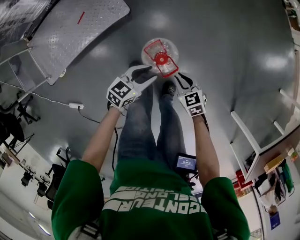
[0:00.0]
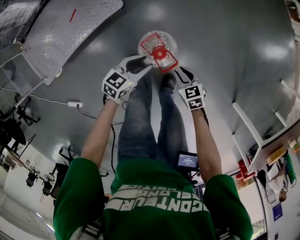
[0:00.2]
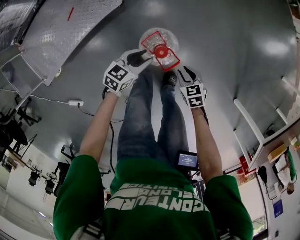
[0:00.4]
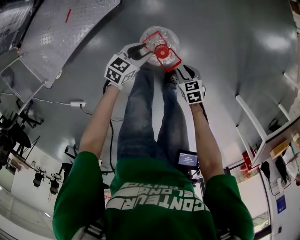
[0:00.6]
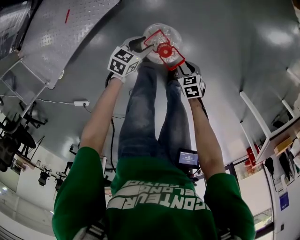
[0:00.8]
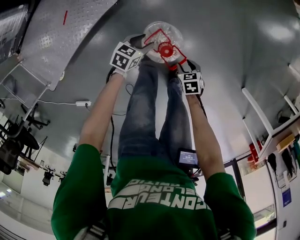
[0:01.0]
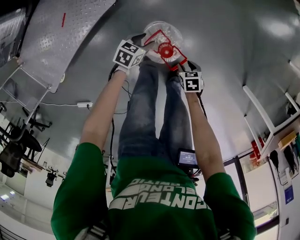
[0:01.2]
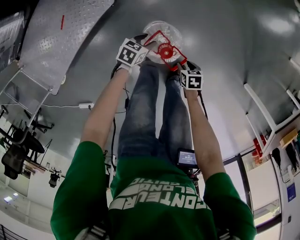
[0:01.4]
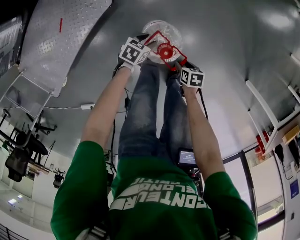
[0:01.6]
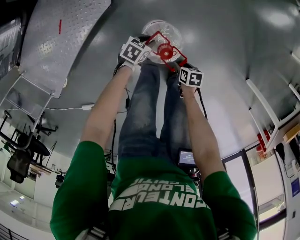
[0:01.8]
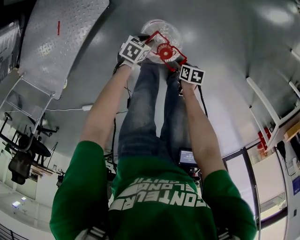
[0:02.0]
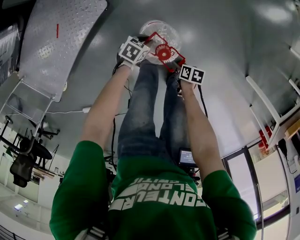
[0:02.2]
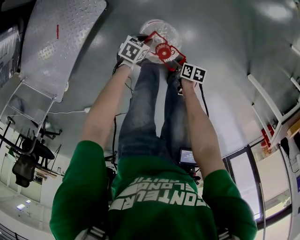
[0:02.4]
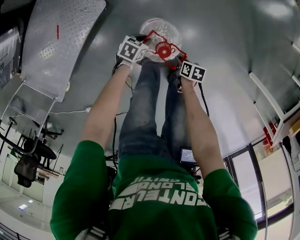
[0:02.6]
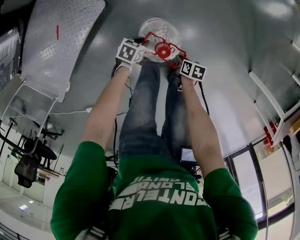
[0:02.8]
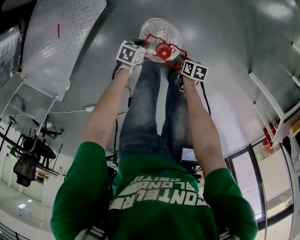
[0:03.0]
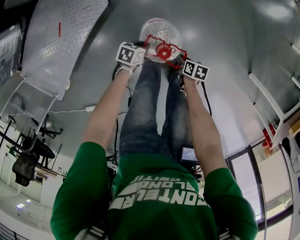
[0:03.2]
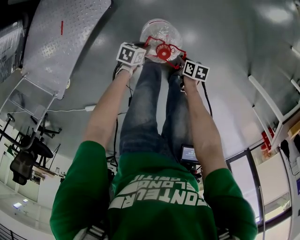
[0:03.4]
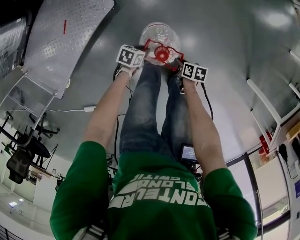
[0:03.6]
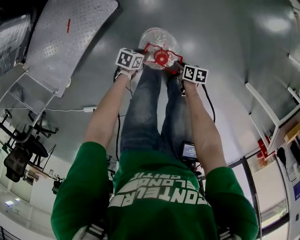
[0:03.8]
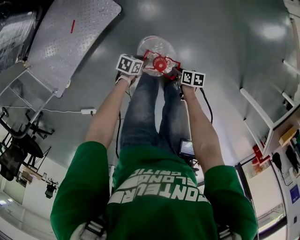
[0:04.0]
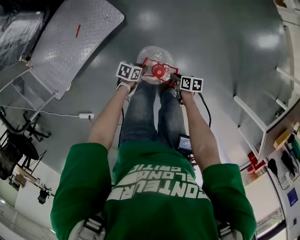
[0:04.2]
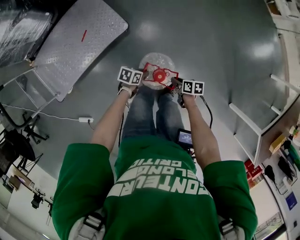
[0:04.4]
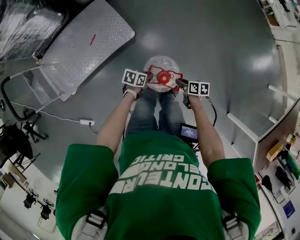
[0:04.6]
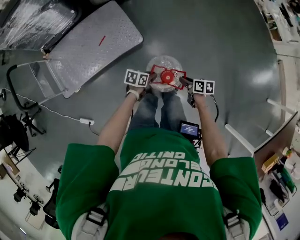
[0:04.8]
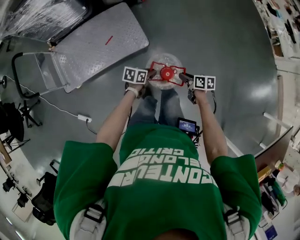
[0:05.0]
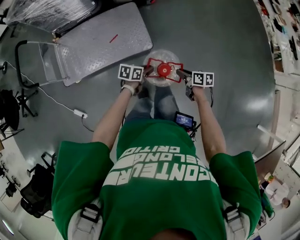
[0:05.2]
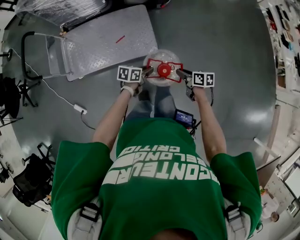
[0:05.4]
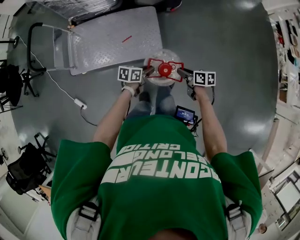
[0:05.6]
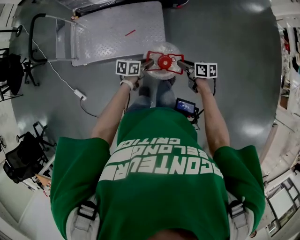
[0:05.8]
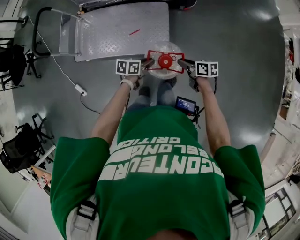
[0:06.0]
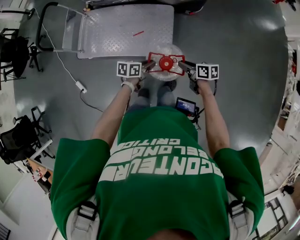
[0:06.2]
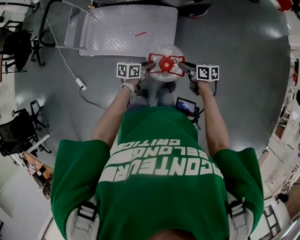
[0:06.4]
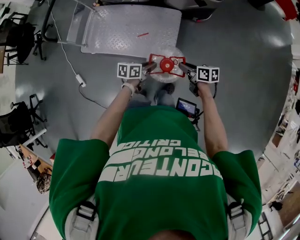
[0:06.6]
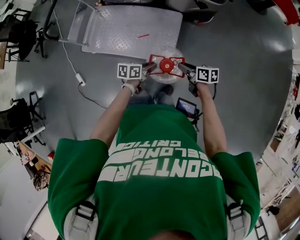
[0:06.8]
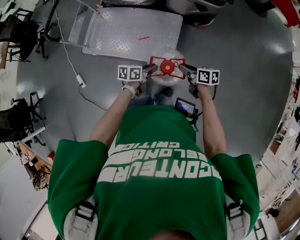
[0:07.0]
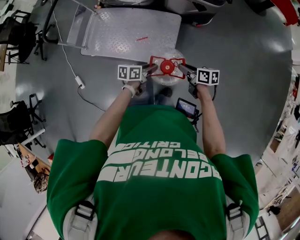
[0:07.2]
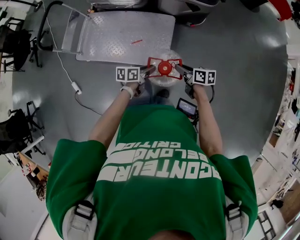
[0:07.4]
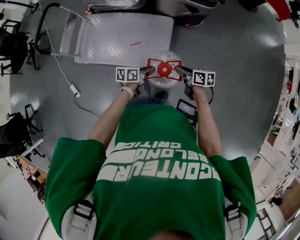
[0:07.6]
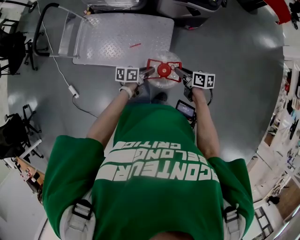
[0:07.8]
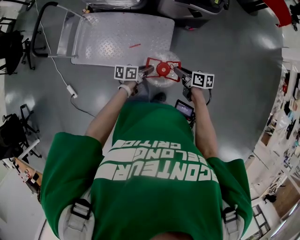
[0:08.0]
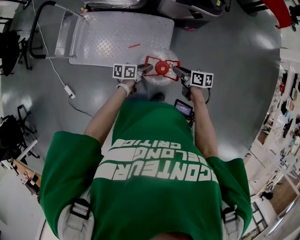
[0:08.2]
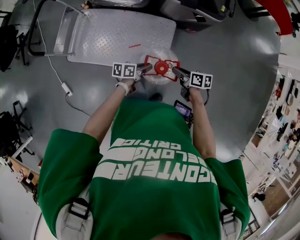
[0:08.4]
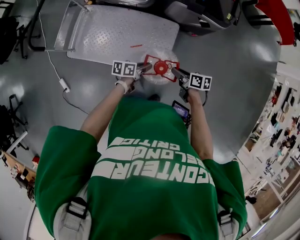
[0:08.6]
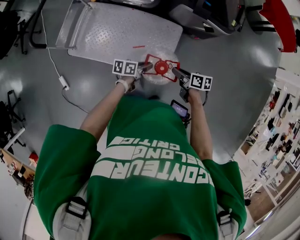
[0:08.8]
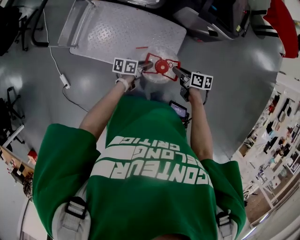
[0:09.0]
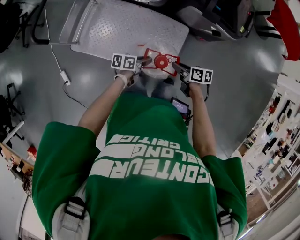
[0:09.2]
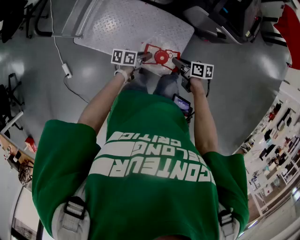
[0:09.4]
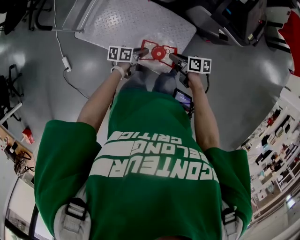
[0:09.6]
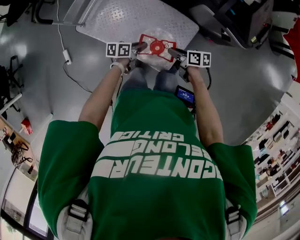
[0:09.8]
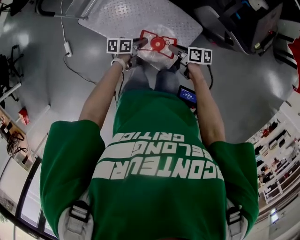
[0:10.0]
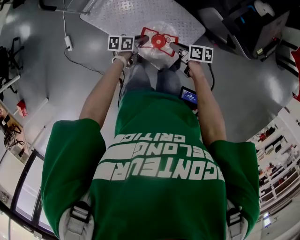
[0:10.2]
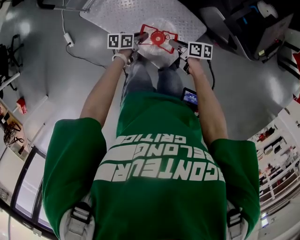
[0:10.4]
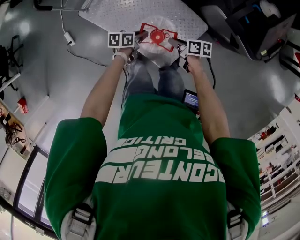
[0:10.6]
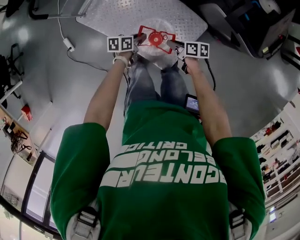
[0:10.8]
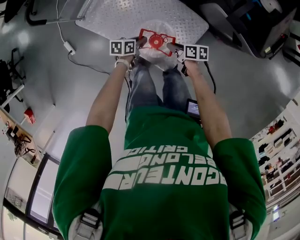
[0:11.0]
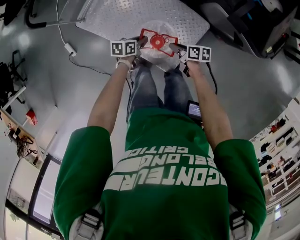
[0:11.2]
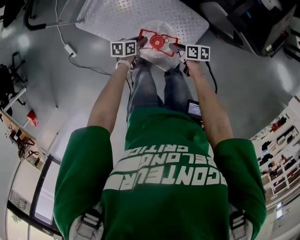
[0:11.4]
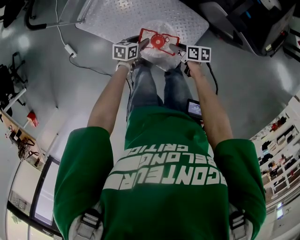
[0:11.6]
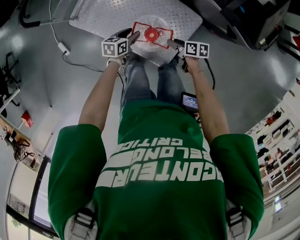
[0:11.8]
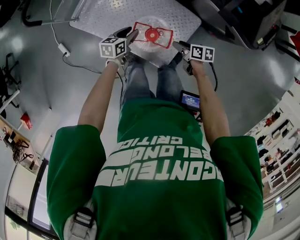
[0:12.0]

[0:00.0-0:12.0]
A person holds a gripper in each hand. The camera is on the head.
0:00.0 to 0:01.6: The two grippers go approximately 20 cm downward. The left gripper changes its angle by some 30 degrees; the right gripper twists about 50 degrees clockwise, seen from behind, and opens up.
0:01.6 to 0:03.0: The right gripper closes its fingers; the left gripper closes up.
0:03.0 to 0:04.4: Both grippers travel together upward, about 15 cm. The right gripper swivels roughly 20 degrees.
0:04.4 to 0:06.0: The left gripper ends up approximately 30 cm from where it was, and changes its angle by roughly 50 degrees; the right gripper ends up some 40 cm from where it was, and changes its angle by roughly 50 degrees.
0:06.0 to 0:07.6: The two grippers go about 10 cm forward.
0:07.6 to 0:09.0: The grippers both shift forward and to the left by roughly 20 cm.
0:09.0 to 0:10.4: The right gripper ends up roughly 15 cm from where it was, and swivels about 20 degrees. Meanwhile the left gripper moves approximately 10 cm, and turns by approximately 30 degrees.
0:10.4 to 0:12.0: The left gripper moves about 5 cm, changes its angle by some 20 degrees, and opens its fingers. The right gripper moves roughly 5 cm, and opens.

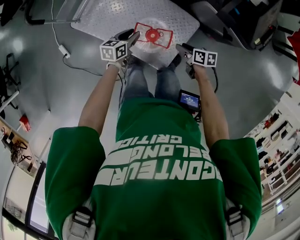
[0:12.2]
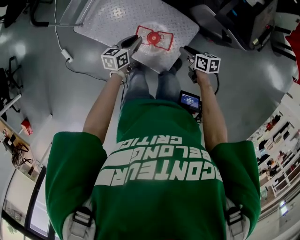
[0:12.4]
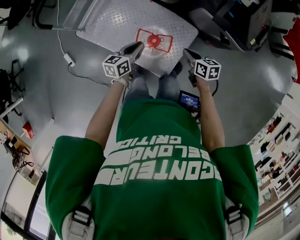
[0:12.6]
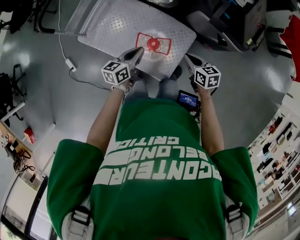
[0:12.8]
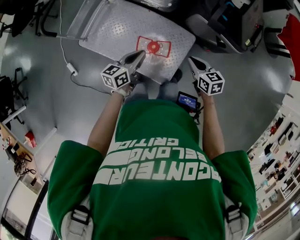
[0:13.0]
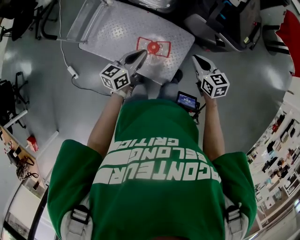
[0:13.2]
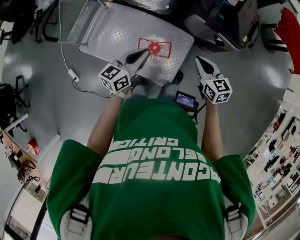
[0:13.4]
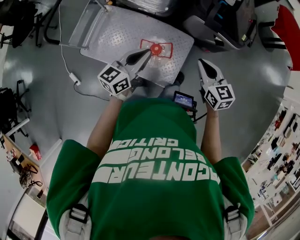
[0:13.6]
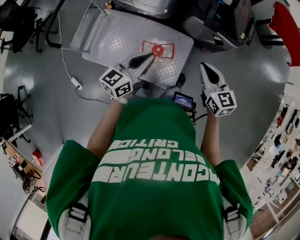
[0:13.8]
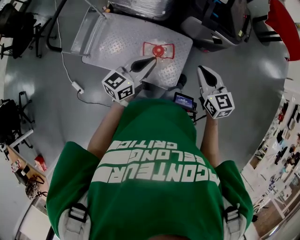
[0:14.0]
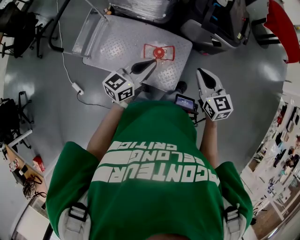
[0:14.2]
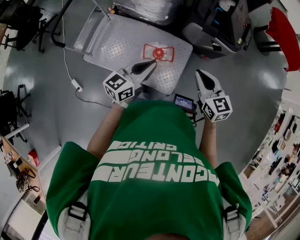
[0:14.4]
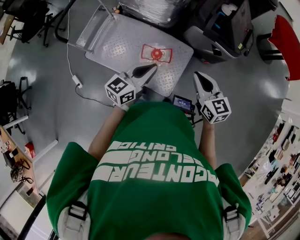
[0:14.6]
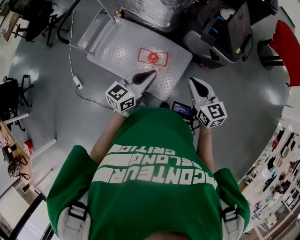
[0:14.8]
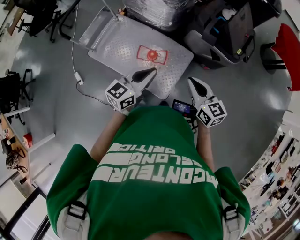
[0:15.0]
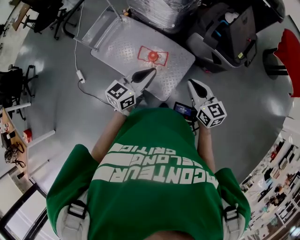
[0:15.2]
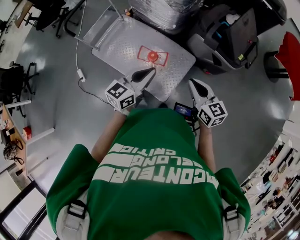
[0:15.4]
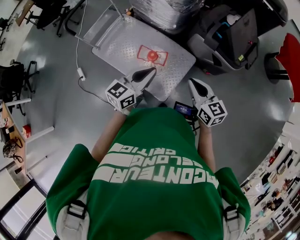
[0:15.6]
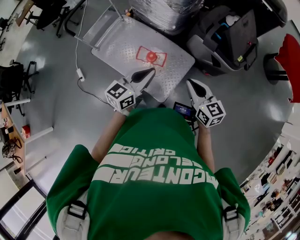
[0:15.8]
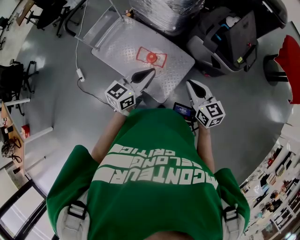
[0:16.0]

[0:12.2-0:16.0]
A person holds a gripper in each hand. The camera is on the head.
0:12.2 to 0:13.4: The grippers both shift upward by about 25 cm. The left gripper swivels some 30 degrees, and closes up. The right gripper turns by about 40 degrees, and closes.
0:13.4 to 0:14.8: The right gripper travels backward and upward by some 15 cm. The left gripper moves backward, to the right and upward, some 15 cm.
0:14.8 to 0:16.0: The grippers move only a little.

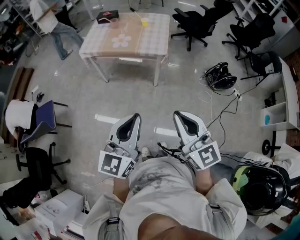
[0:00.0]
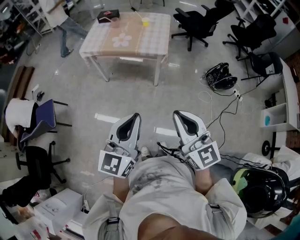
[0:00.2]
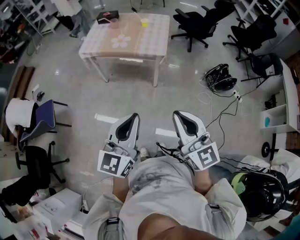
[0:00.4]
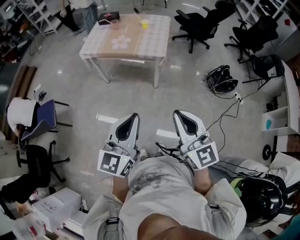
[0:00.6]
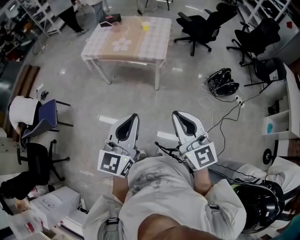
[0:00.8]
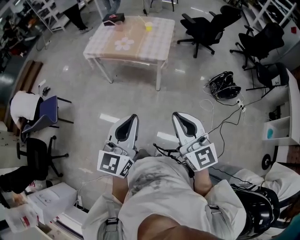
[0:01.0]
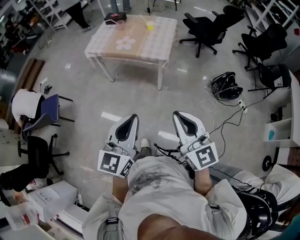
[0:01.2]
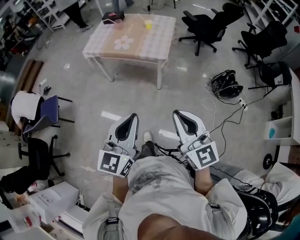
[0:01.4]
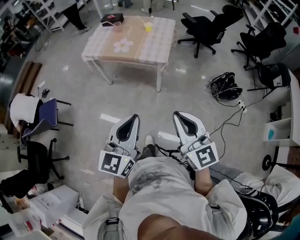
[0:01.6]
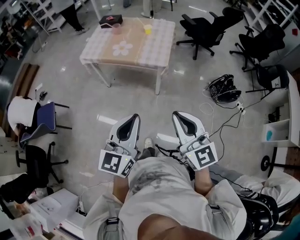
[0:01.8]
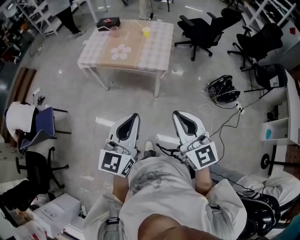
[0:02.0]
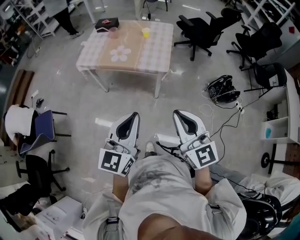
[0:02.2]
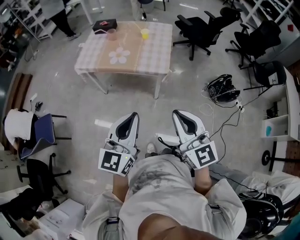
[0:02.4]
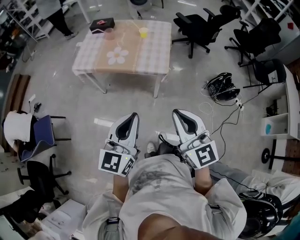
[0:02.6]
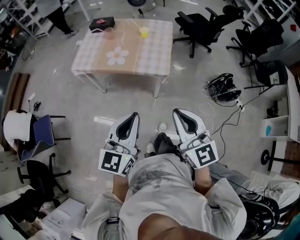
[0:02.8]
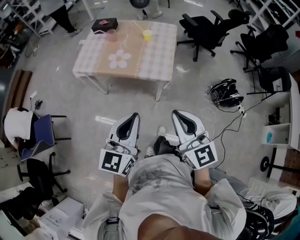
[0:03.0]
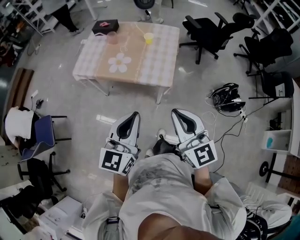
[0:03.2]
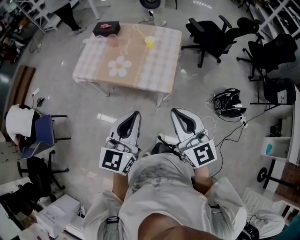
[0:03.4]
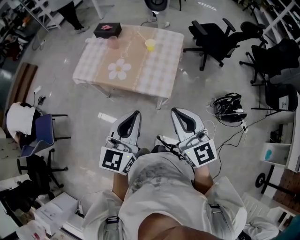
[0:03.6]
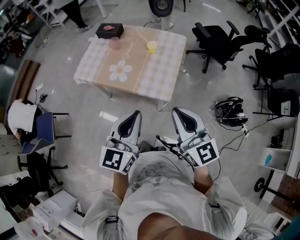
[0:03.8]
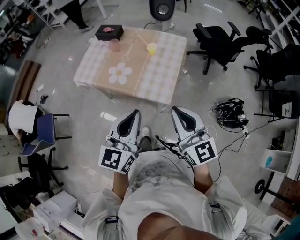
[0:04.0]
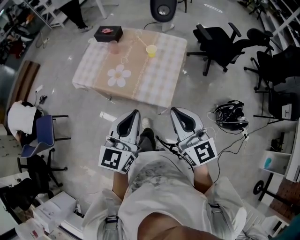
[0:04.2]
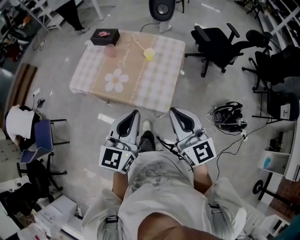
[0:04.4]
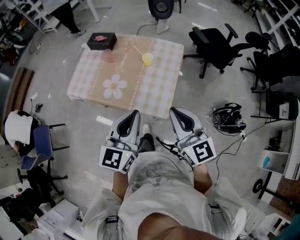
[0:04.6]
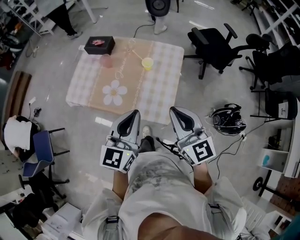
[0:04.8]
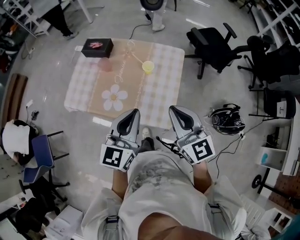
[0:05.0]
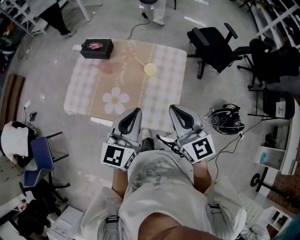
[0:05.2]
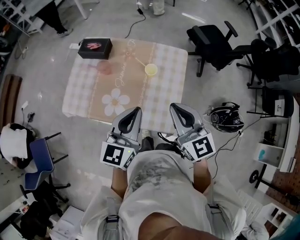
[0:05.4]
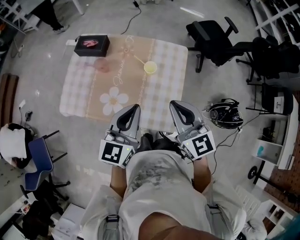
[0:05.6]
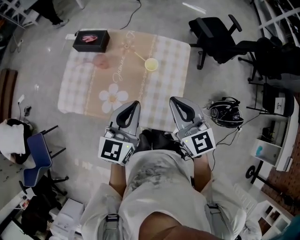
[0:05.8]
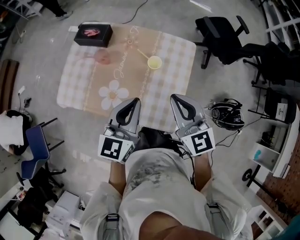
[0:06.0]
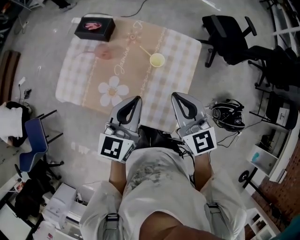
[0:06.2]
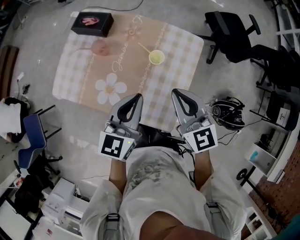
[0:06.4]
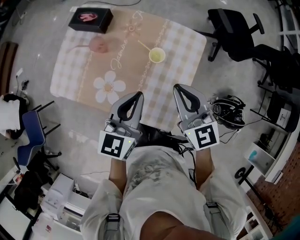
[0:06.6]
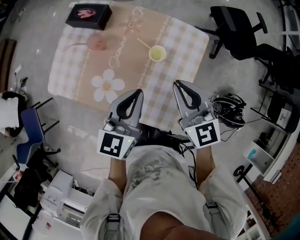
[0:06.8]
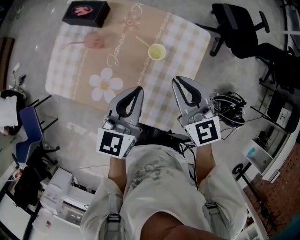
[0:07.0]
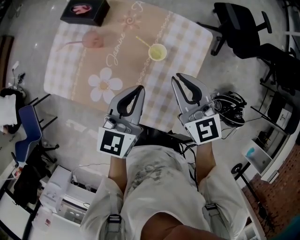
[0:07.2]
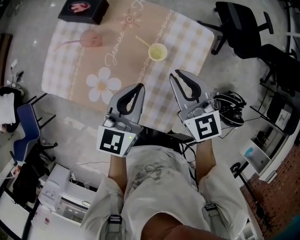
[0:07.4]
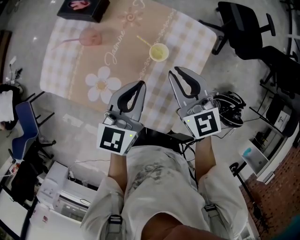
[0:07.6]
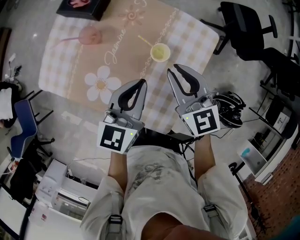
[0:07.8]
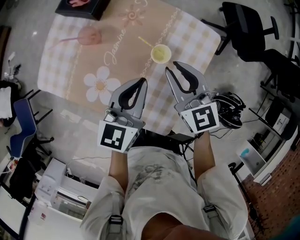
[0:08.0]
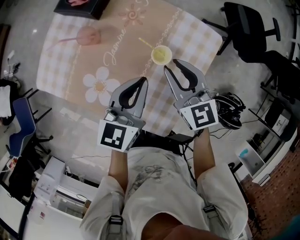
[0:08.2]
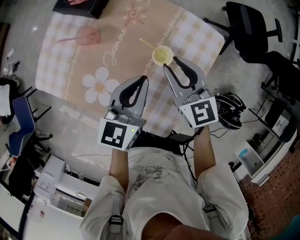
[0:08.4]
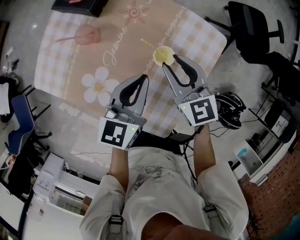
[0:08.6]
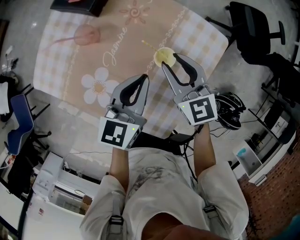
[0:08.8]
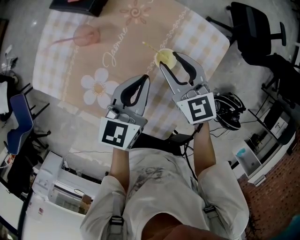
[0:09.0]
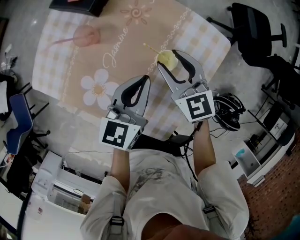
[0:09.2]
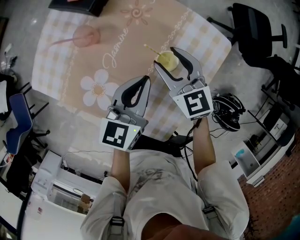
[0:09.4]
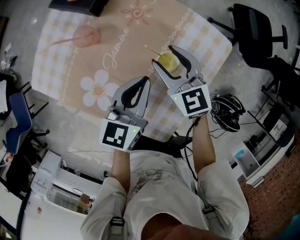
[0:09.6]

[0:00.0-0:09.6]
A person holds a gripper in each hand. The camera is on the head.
0:00.0 to 0:01.6: The grippers both shift to the right and forward by some 10 cm.
0:01.6 to 0:03.2: Both grippers travel together forward, approximately 25 cm.
0:03.2 to 0:04.8: Both grippers move forward, some 30 cm.
0:04.8 to 0:06.4: The two grippers go roughly 20 cm forward and downward.
0:06.4 to 0:08.0: Both grippers move forward and downward, some 15 cm. The right gripper opens its fingers.
0:08.0 to 0:09.6: The left gripper is displaced downward by some 5 cm; the right gripper is displaced downward and forward by approximately 10 cm, and opens its fingers.
